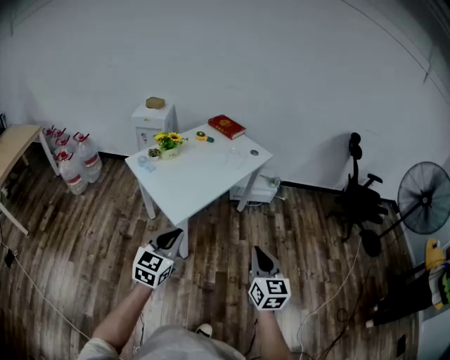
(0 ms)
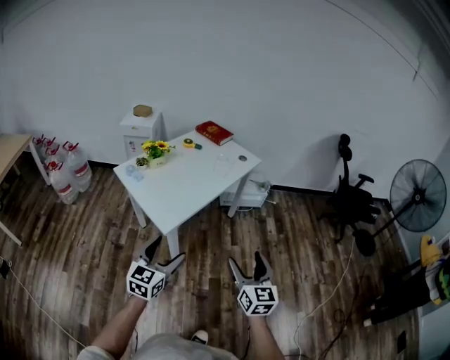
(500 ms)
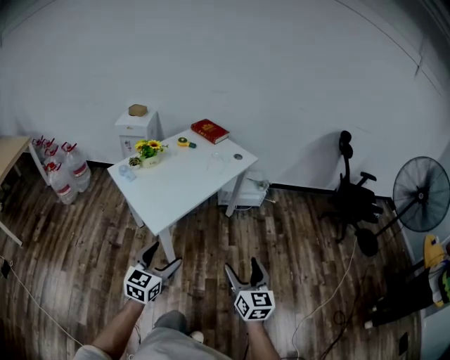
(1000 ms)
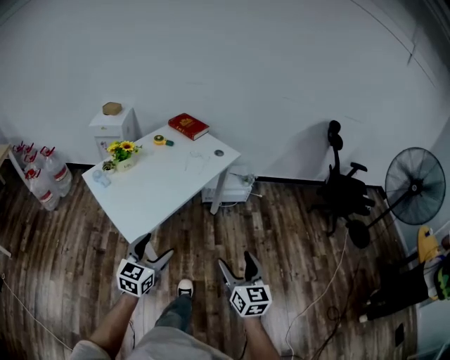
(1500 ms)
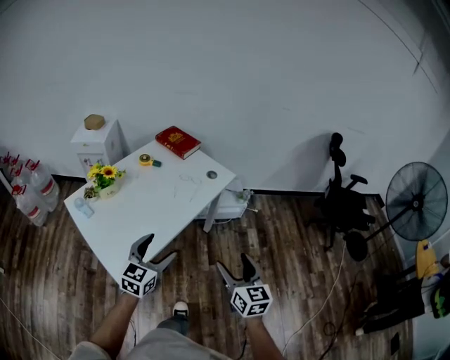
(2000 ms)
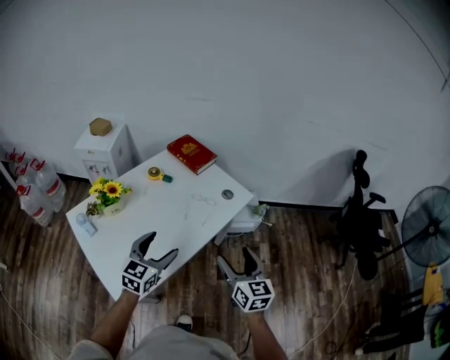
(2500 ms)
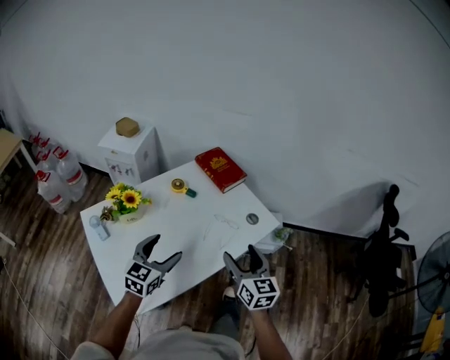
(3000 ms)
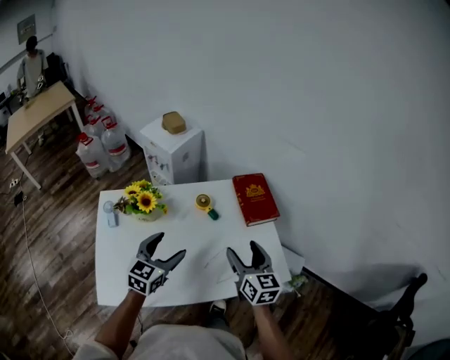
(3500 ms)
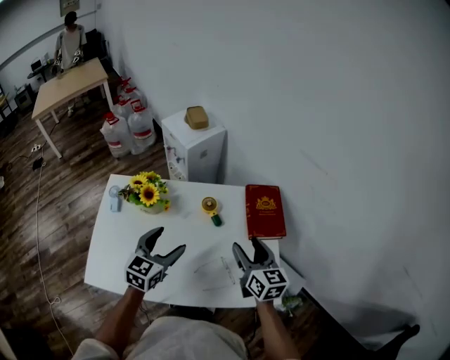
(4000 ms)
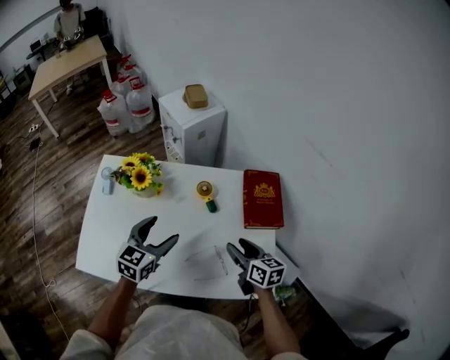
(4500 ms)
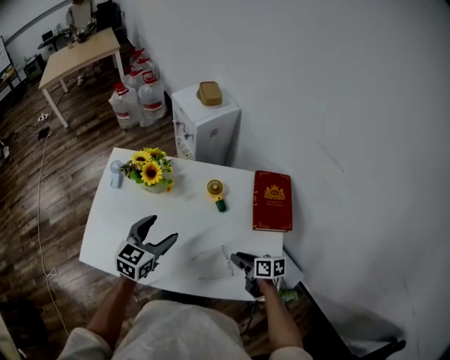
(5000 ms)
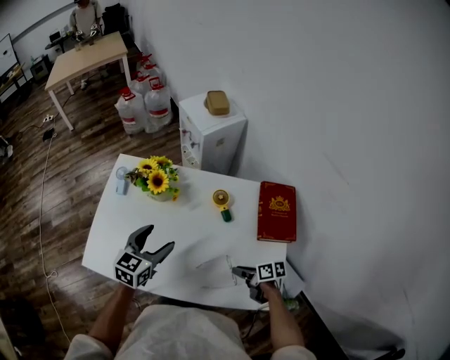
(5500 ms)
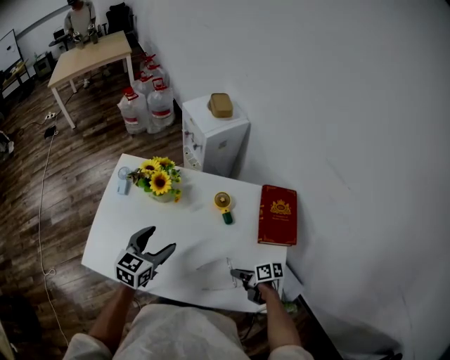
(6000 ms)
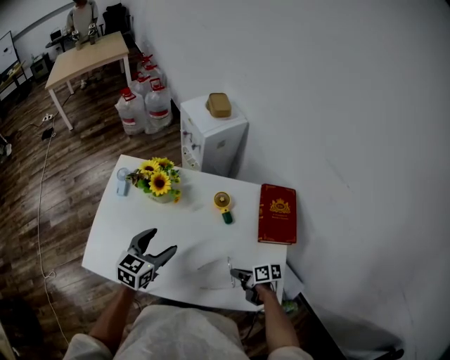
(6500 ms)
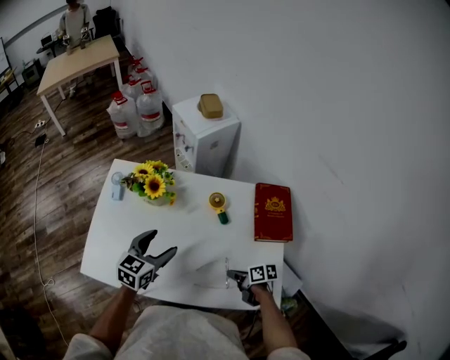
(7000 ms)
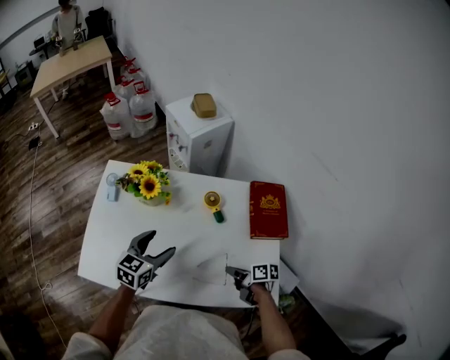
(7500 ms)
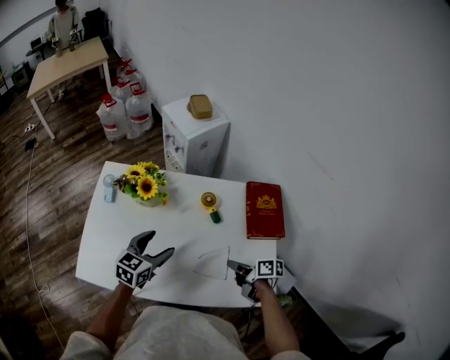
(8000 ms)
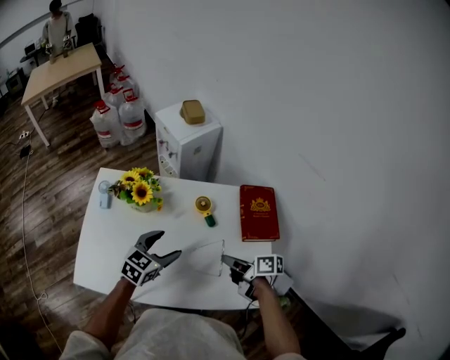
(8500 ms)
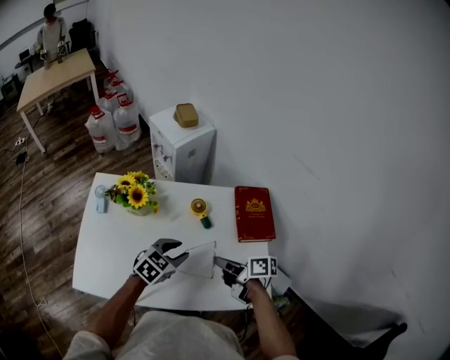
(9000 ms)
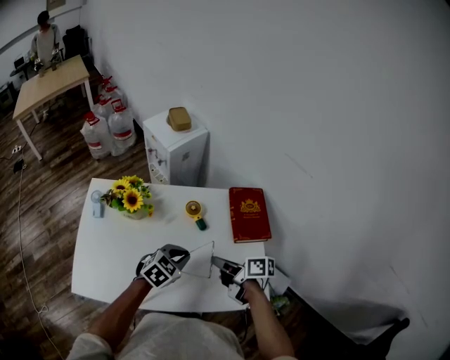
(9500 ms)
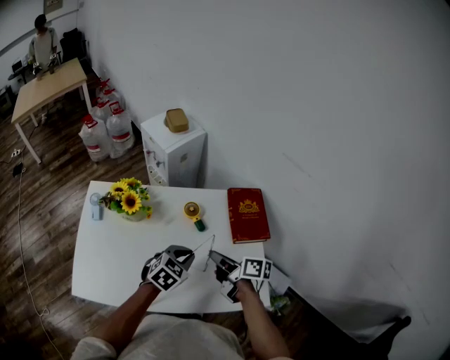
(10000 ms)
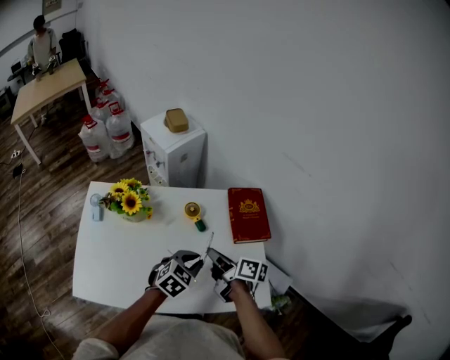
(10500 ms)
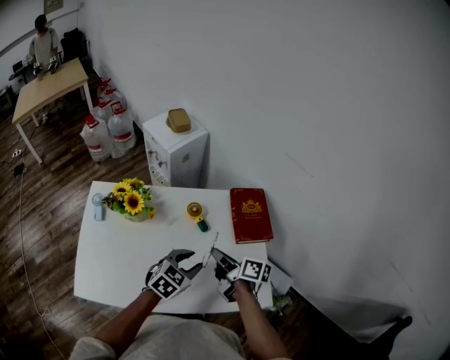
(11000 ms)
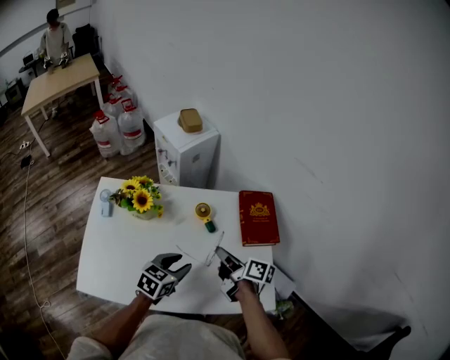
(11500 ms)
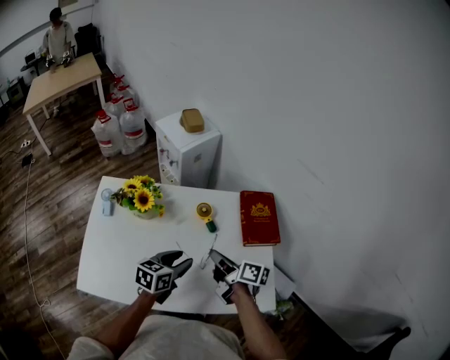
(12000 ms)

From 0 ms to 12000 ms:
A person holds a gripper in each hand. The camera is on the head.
From 0 ms to 2000 ms: Both grippers travel together forward, about 35 cm. The left gripper opens, while the right gripper opens its fingers.
From 2000 ms to 4000 ms: The two grippers travel together, approximately 60 cm. The right gripper turns by about 50 degrees, while the left gripper swivels roughly 50 degrees.
From 4000 ms to 6000 ms: The left gripper ends up roughly 10 cm from where it was, while the right gripper shifts about 25 cm downward, rotates approximately 60 degrees, and closes.
From 6000 ms to 8000 ms: The right gripper shifts some 10 cm upward.
From 8000 ms to 10000 ms: The right gripper heads upward, covering about 10 cm. Meanwhile the left gripper moves to the right, some 15 cm, rotates approximately 30 degrees, and closes.
From 10000 ms to 12000 ms: The left gripper heads to the left, covering some 5 cm, turns by some 40 degrees, and opens its fingers.

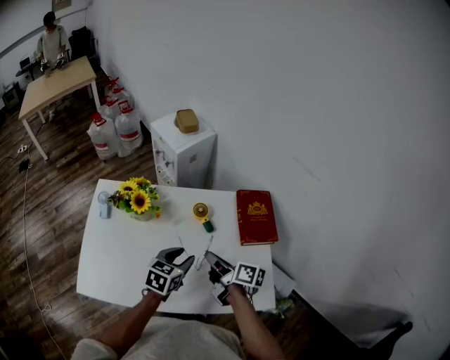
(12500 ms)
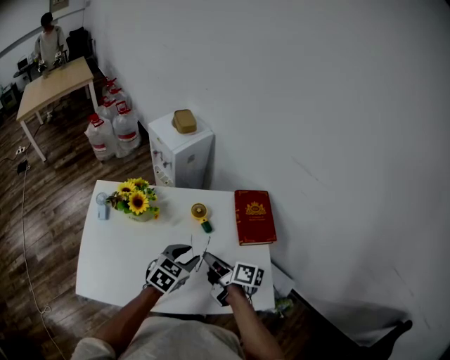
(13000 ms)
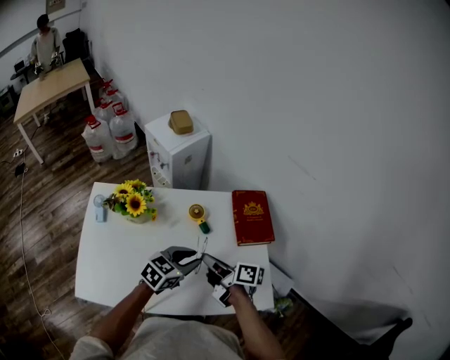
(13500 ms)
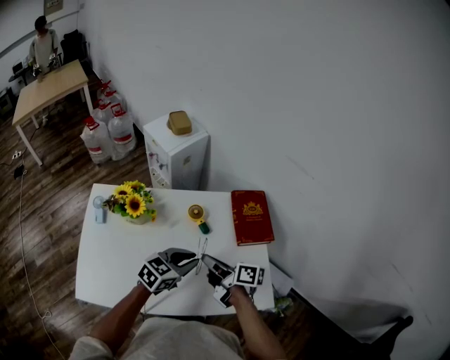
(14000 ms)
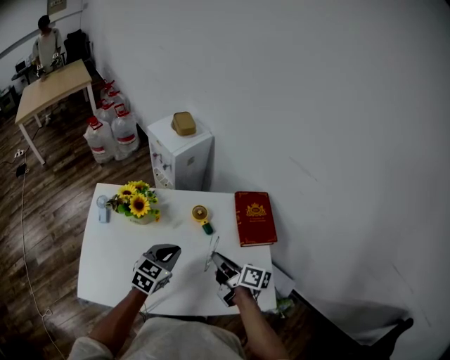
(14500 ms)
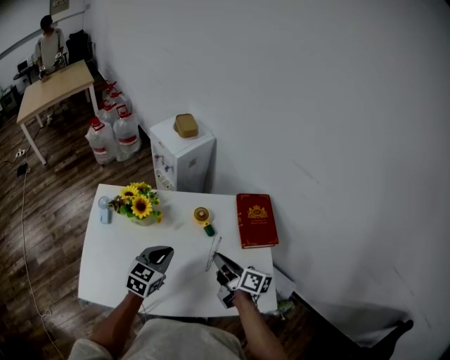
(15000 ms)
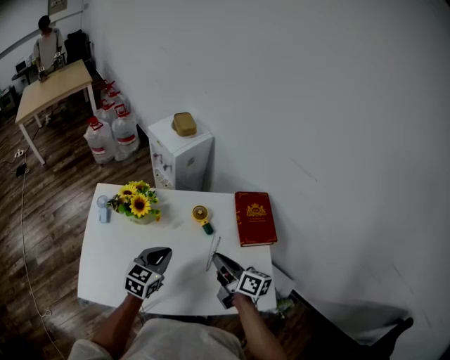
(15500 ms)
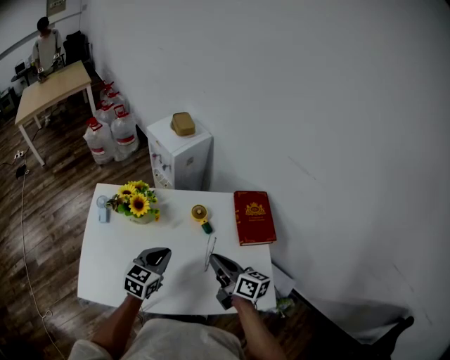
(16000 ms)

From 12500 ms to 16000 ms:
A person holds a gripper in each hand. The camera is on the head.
From 12500 ms to 14500 ms: The left gripper closes its fingers.
From 14500 ms to 16000 ms: The grippers make only small movements.

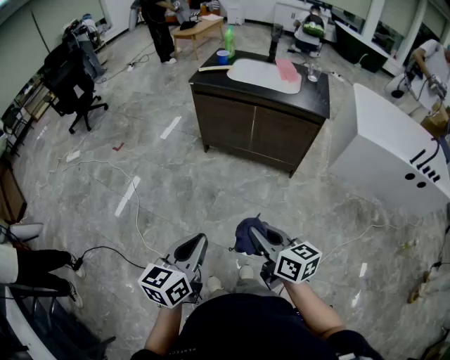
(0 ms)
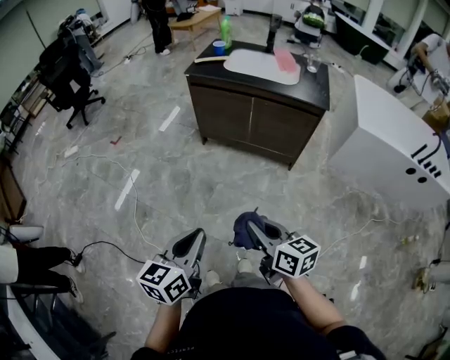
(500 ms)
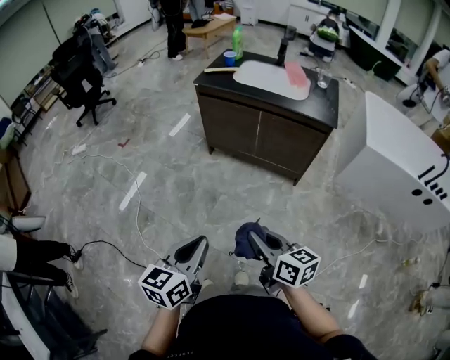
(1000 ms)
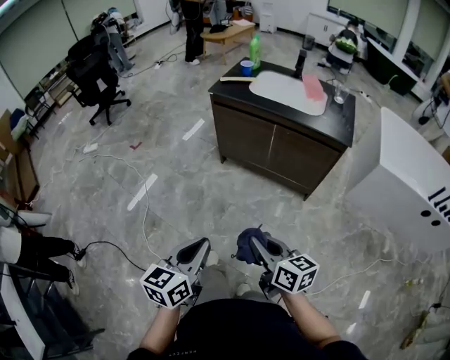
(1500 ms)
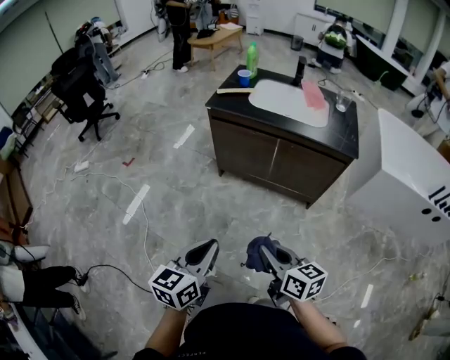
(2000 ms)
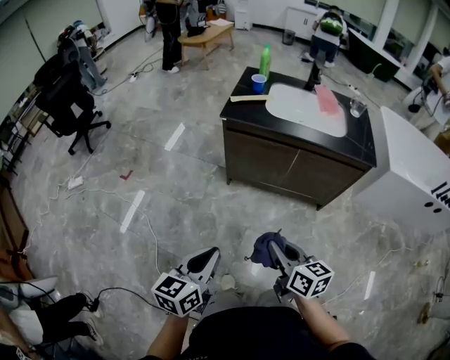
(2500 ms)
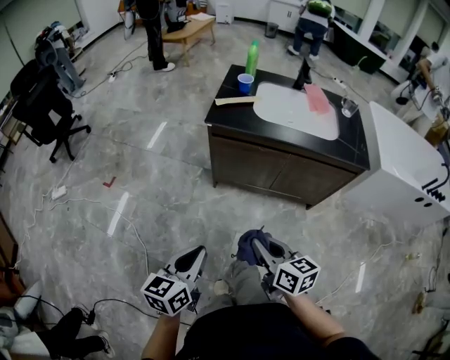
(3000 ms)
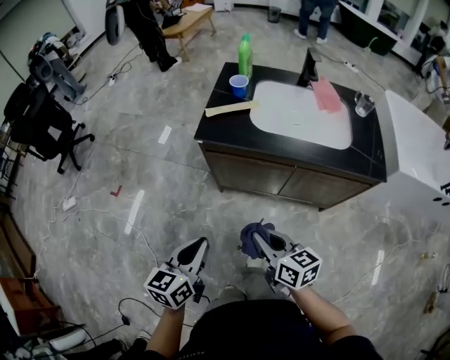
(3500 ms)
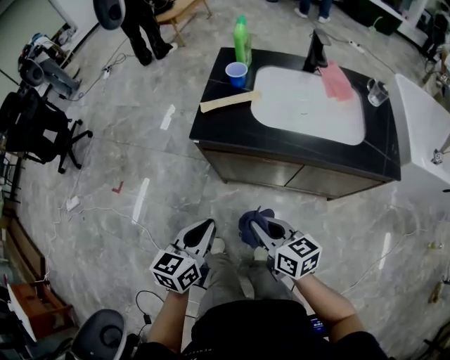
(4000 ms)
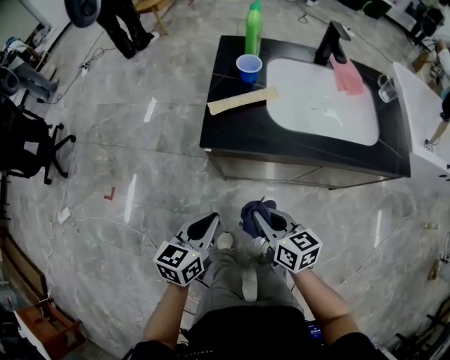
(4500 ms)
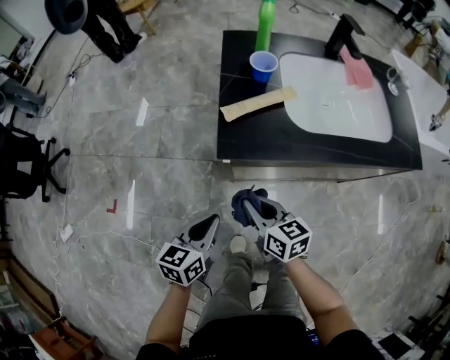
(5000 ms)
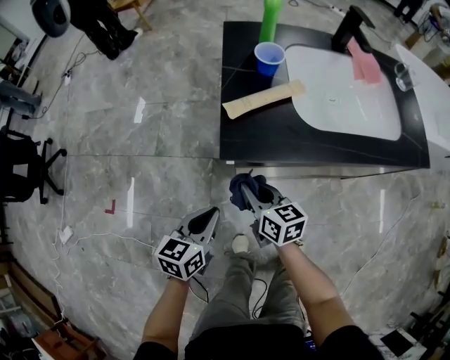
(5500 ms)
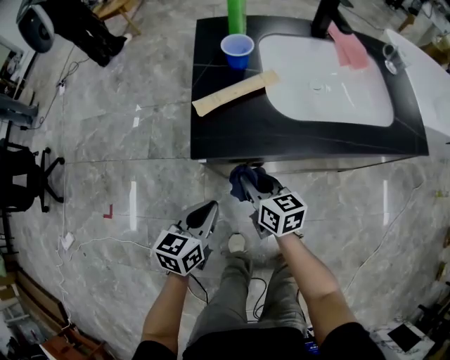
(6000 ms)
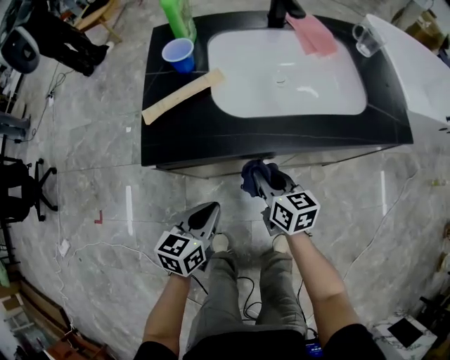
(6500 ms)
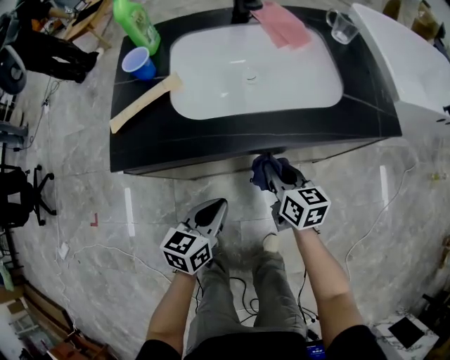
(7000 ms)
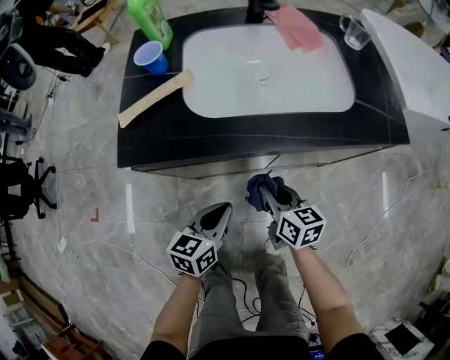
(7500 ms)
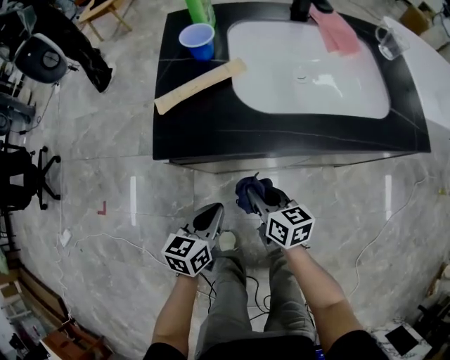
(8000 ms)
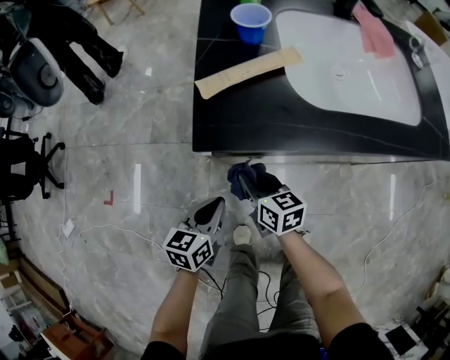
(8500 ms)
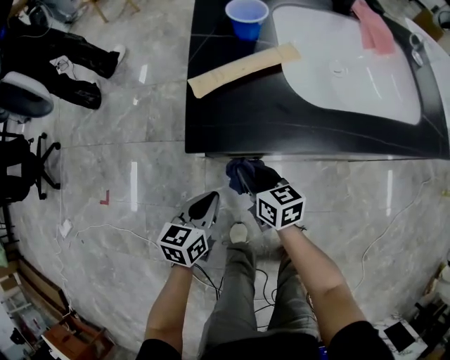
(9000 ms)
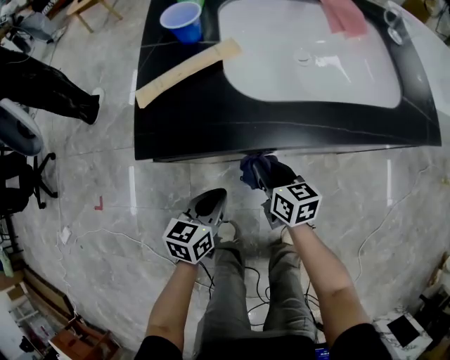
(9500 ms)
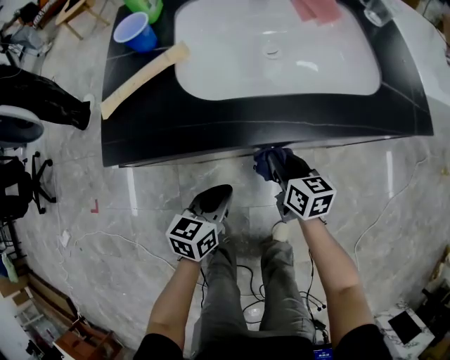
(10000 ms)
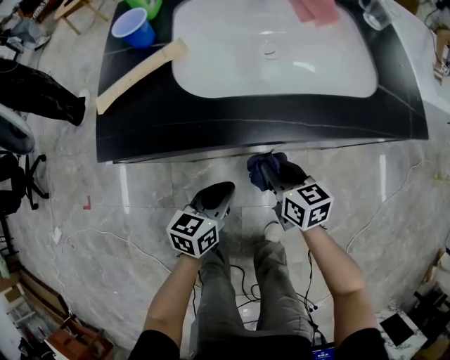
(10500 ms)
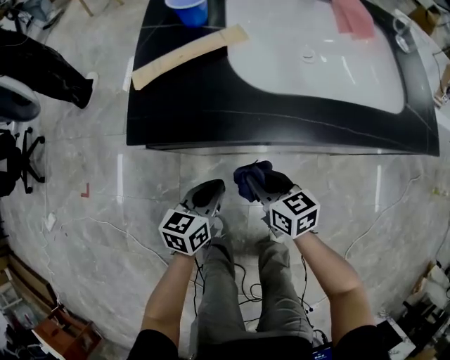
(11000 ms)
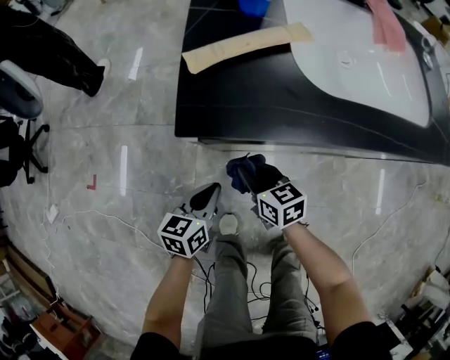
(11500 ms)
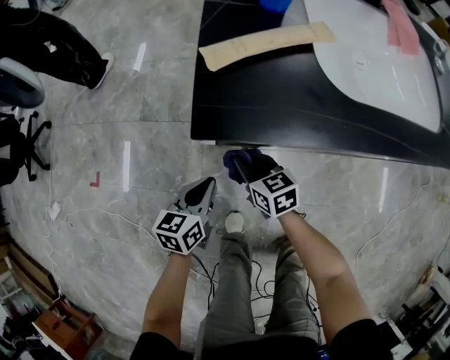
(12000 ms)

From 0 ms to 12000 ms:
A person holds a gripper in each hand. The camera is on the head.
From 0 ms to 2000 ms: Both grippers travel together forward, some 15 cm.
From 2000 ms to 4000 ms: Both grippers move forward, approximately 40 cm.
From 4000 ms to 6000 ms: The grippers both shift forward, downward and to the left by some 25 cm. The right gripper rotates about 20 degrees.
From 6000 ms to 8000 ms: The left gripper goes about 10 cm to the right and downward, while the right gripper travels to the right and back again, about 30 cm each way.
From 8000 ms to 10000 ms: The grippers both shift to the right by roughly 15 cm.
From 10000 ms to 12000 ms: Both grippers move to the left, some 25 cm. The right gripper changes its angle by about 30 degrees.
